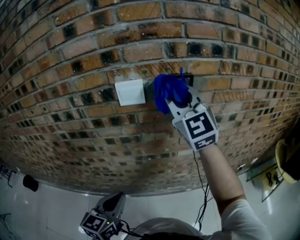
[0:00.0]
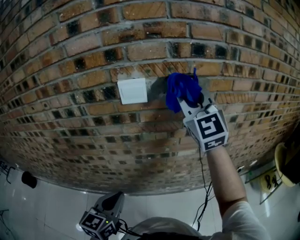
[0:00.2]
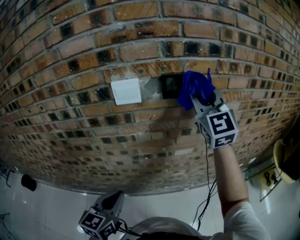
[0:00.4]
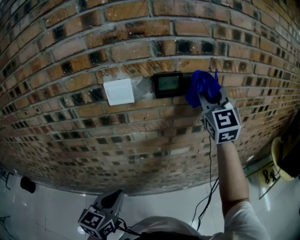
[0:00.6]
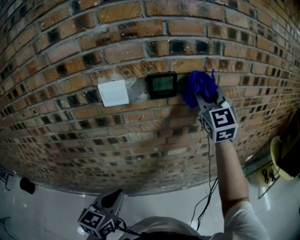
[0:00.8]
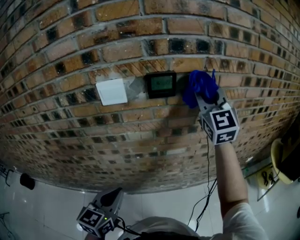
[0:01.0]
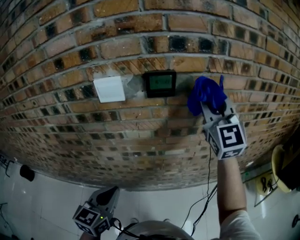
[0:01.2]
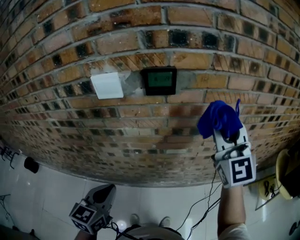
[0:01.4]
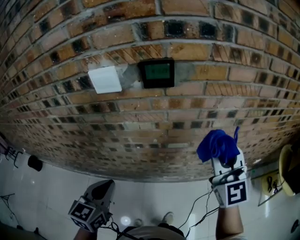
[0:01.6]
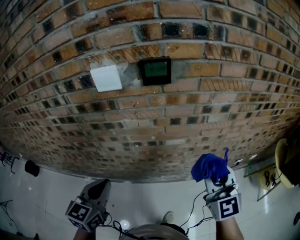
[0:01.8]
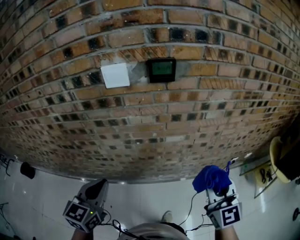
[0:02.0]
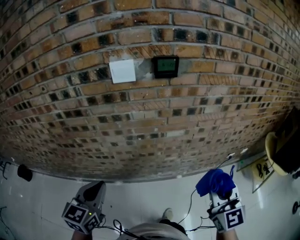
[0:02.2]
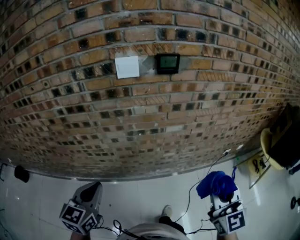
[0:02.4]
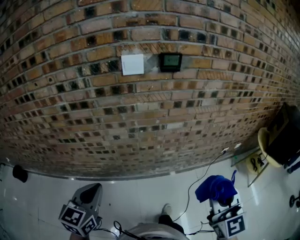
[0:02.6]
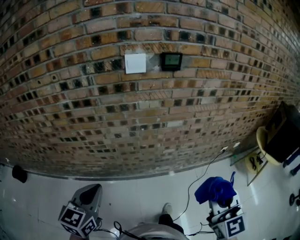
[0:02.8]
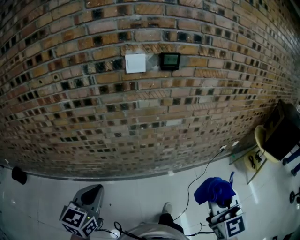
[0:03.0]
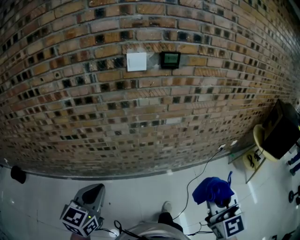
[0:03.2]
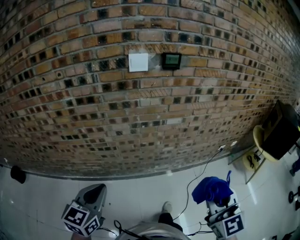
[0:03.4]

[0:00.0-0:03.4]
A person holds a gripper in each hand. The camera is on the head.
0:00.0 to 0:01.6: The left gripper shifts about 5 cm to the right; the right gripper is displaced to the right, downward and backward by about 25 cm.
0:01.6 to 0:03.4: The right gripper heads backward, covering approximately 40 cm. Meanwhile the left gripper moves backward and to the left, some 30 cm.

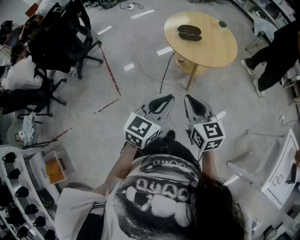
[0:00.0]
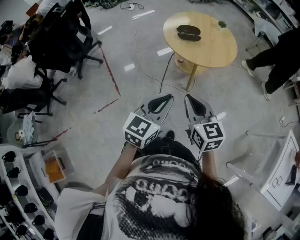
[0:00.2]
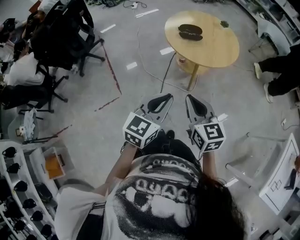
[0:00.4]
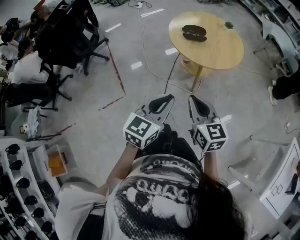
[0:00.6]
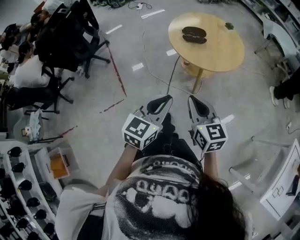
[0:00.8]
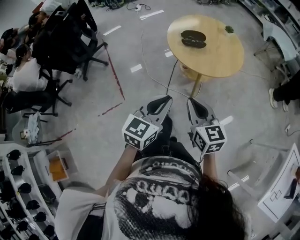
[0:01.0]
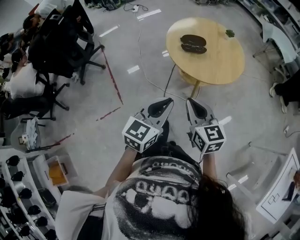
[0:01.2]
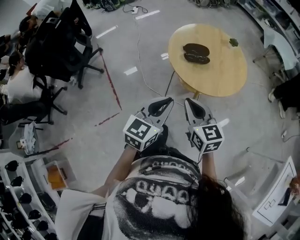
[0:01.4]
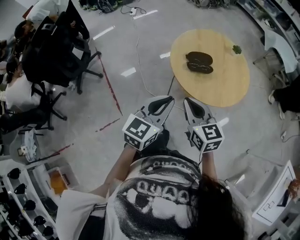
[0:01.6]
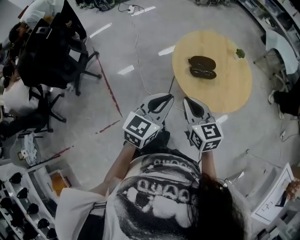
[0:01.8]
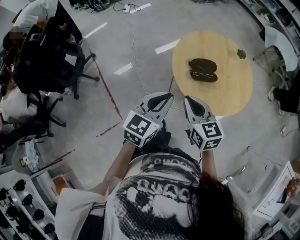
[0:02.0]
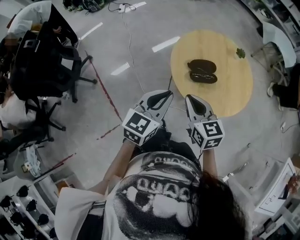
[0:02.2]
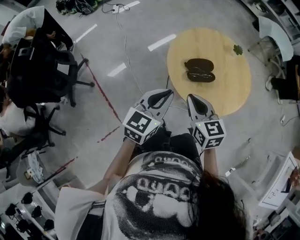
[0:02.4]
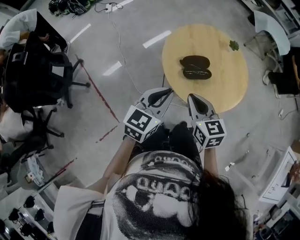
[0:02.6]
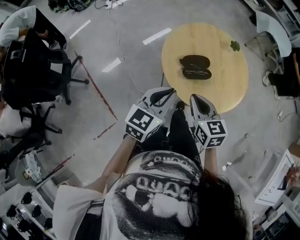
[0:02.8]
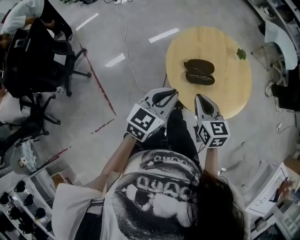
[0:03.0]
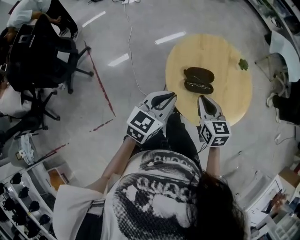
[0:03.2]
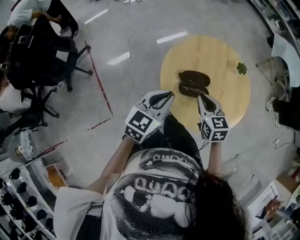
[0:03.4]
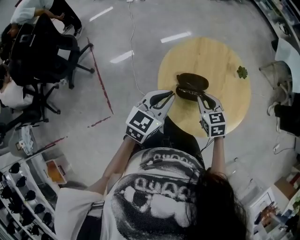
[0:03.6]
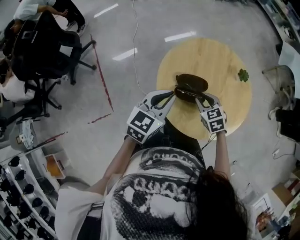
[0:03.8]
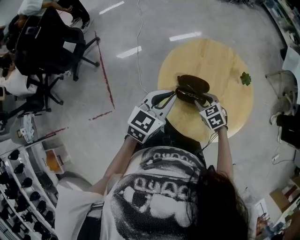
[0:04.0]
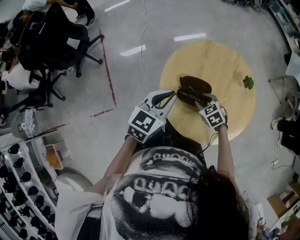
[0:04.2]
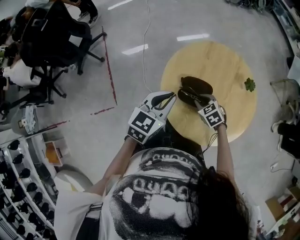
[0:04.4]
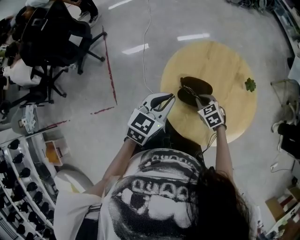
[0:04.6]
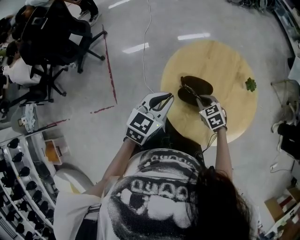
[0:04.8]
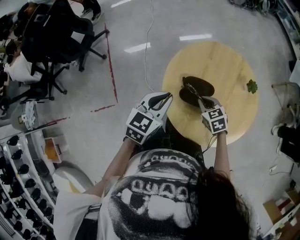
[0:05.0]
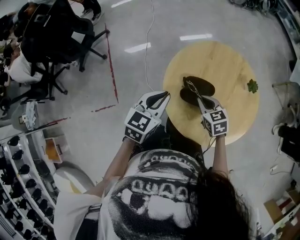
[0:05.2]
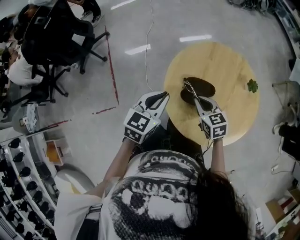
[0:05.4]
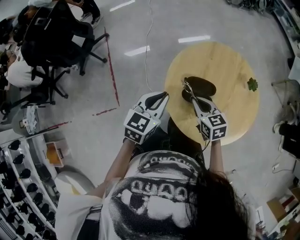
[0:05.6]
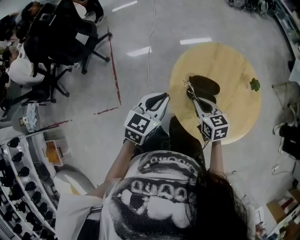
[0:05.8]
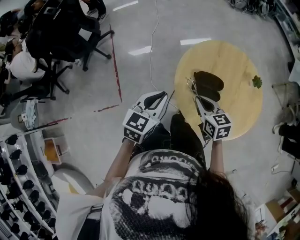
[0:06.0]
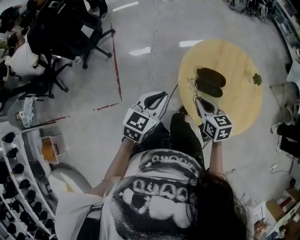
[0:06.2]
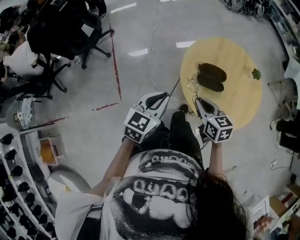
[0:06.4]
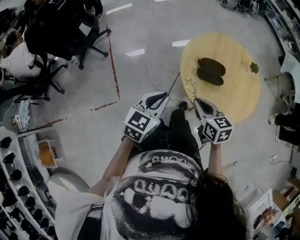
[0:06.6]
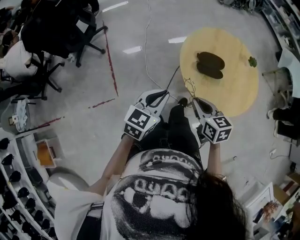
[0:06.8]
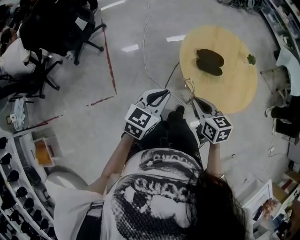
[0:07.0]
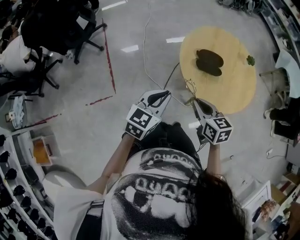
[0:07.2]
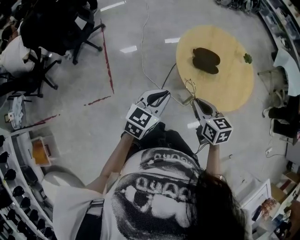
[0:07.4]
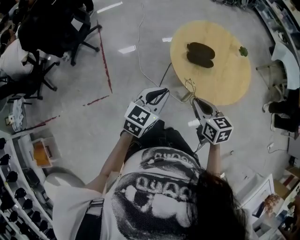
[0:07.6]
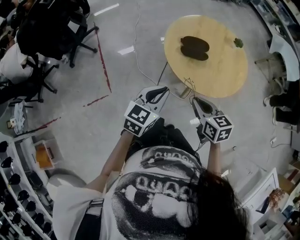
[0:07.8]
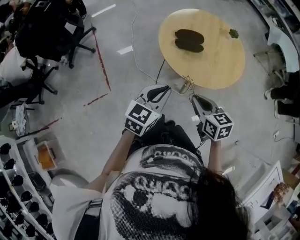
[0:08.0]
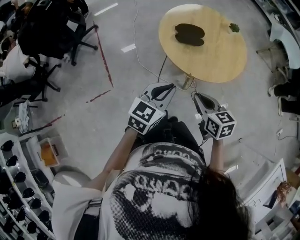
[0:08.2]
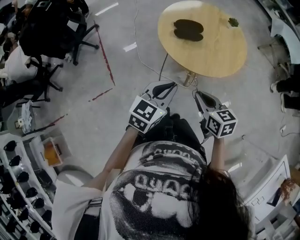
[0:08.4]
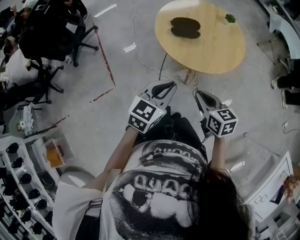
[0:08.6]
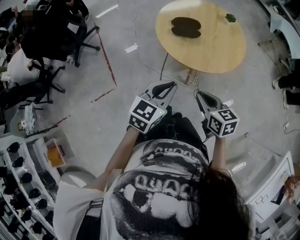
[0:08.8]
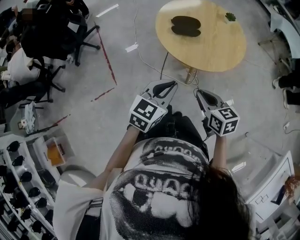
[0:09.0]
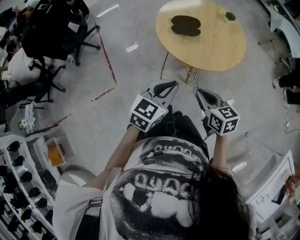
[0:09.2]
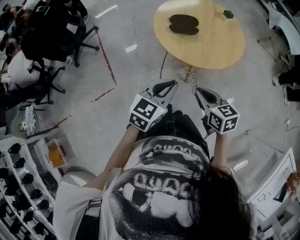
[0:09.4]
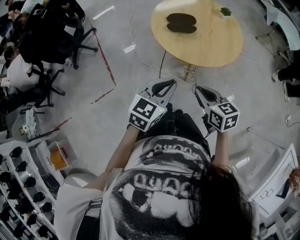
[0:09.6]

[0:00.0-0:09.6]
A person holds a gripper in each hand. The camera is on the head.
0:00.0 to 0:01.6: Both grippers travel together forward, some 25 cm.
0:01.6 to 0:03.2: The two grippers go roughly 20 cm forward.
0:03.2 to 0:04.8: The right gripper goes roughly 15 cm downward, changes its angle by roughly 40 degrees, and opens and closes again. Meanwhile the left gripper ends up some 5 cm from where it was.
0:04.8 to 0:06.4: The left gripper moves to the left and backward, approximately 15 cm. The right gripper goes roughly 20 cm upward, to the left and backward, and swivels some 30 degrees.
0:06.4 to 0:08.0: The right gripper is displaced backward by some 20 cm, while the left gripper heads backward and to the right, covering approximately 15 cm.
0:08.0 to 0:09.6: The right gripper heads backward, covering approximately 5 cm. Meanwhile the left gripper travels backward and to the right by about 10 cm.

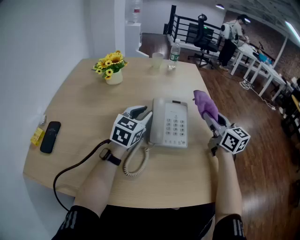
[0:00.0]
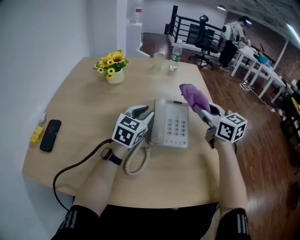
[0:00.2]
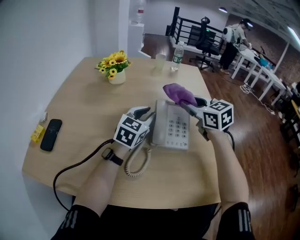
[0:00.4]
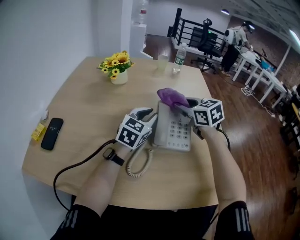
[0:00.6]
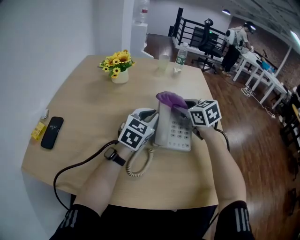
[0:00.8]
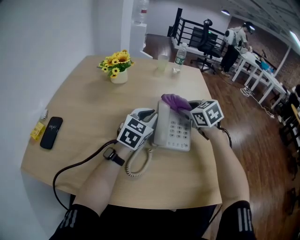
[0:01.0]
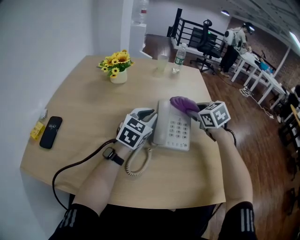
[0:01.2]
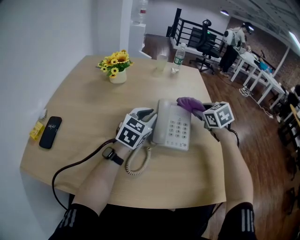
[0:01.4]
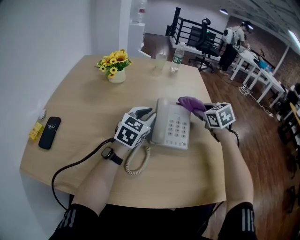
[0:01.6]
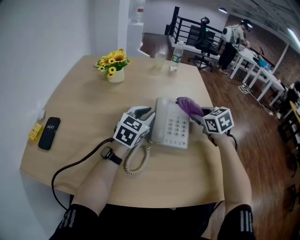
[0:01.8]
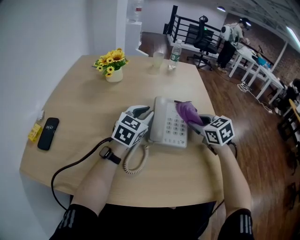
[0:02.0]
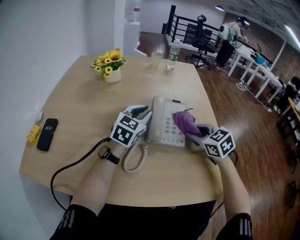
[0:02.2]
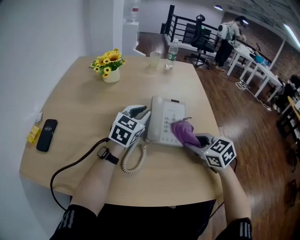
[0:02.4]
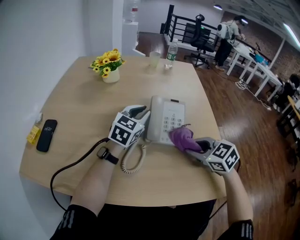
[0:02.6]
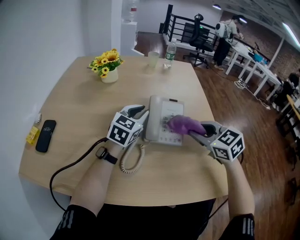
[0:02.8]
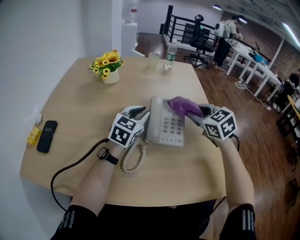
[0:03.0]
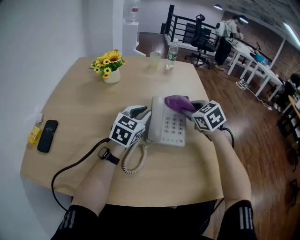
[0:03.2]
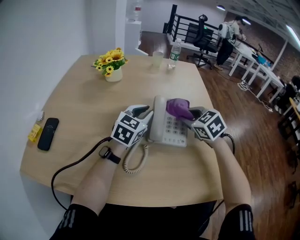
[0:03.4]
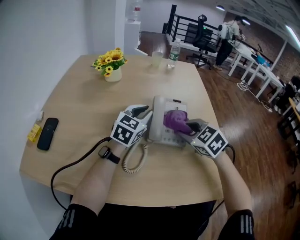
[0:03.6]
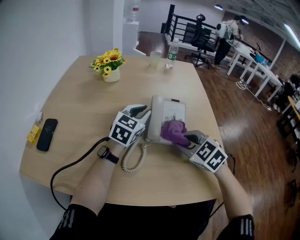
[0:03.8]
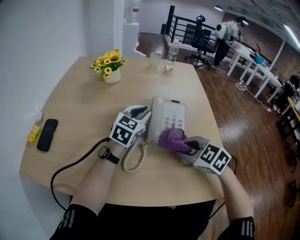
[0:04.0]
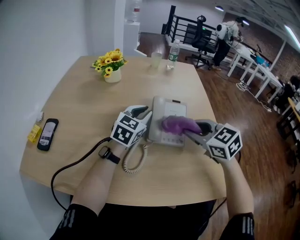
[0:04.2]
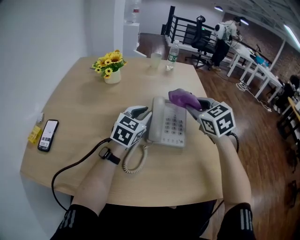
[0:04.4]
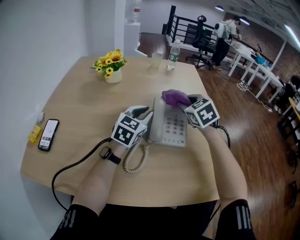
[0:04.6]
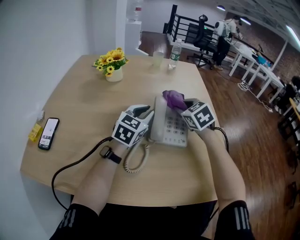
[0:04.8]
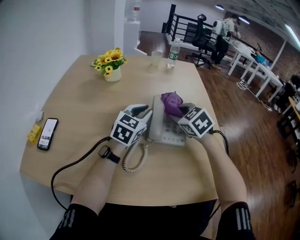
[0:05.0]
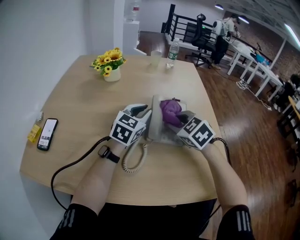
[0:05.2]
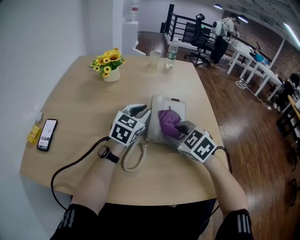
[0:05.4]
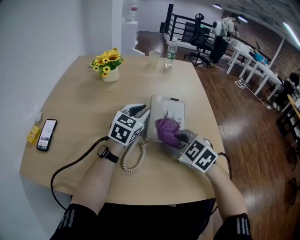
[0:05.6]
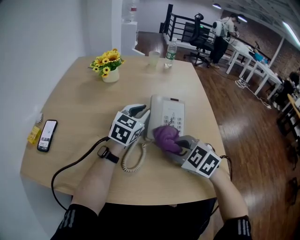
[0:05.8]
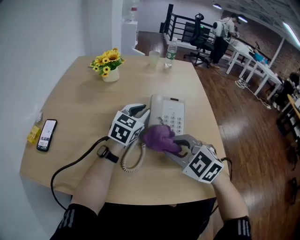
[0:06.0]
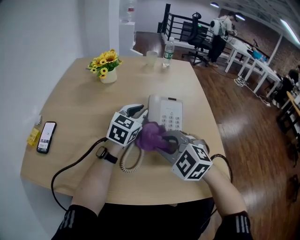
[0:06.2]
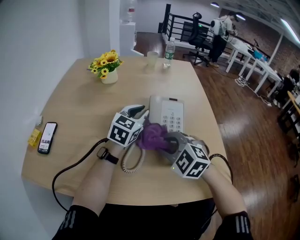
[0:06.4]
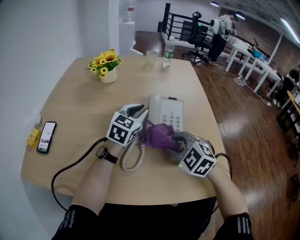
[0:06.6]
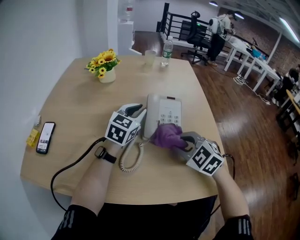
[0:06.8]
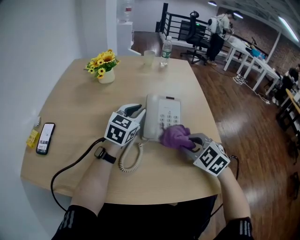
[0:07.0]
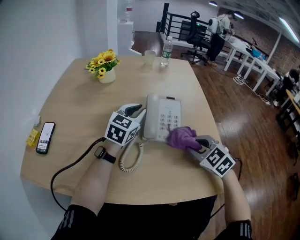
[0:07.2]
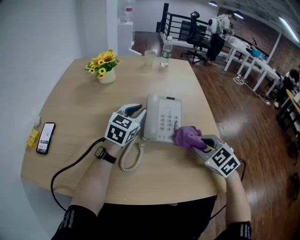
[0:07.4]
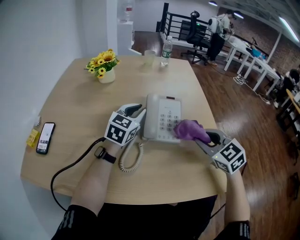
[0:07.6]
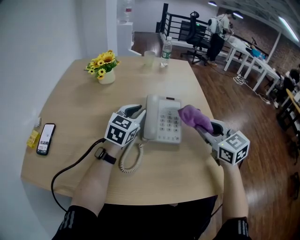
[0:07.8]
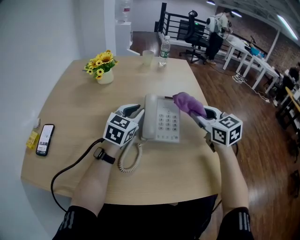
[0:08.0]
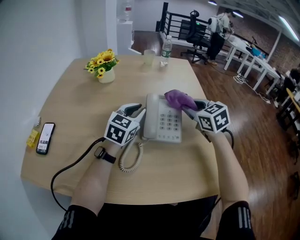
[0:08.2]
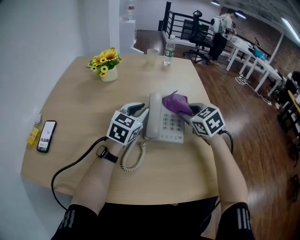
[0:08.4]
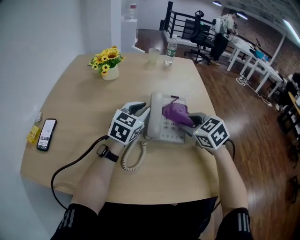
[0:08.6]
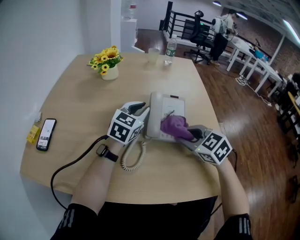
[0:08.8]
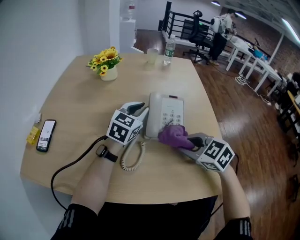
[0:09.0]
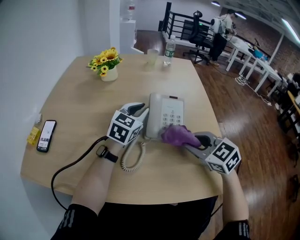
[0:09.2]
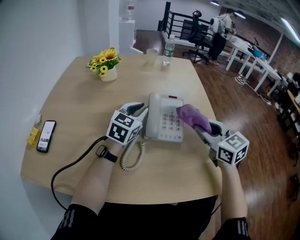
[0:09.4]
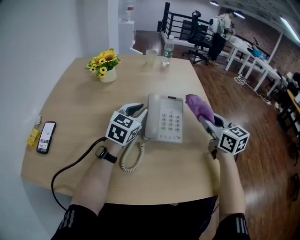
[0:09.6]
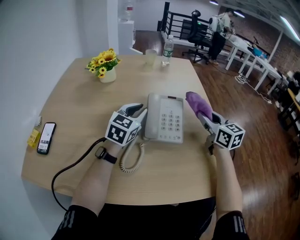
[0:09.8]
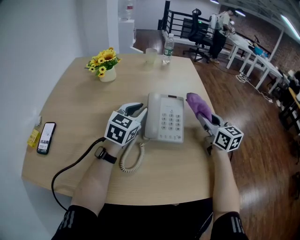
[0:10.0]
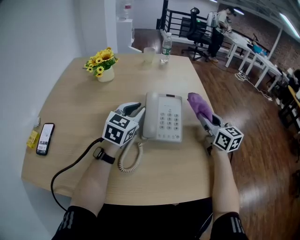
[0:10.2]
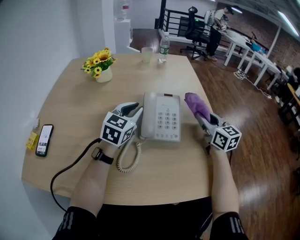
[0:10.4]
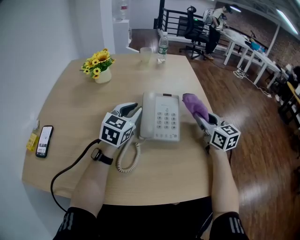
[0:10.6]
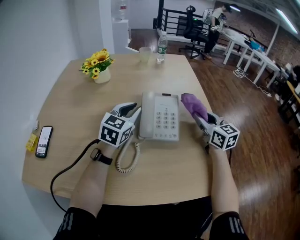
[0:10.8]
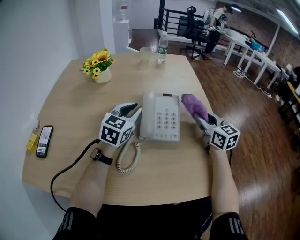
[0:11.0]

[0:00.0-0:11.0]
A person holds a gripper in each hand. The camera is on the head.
0:00.0 to 0:01.6: The right gripper goes some 10 cm forward and downward, goes to the left and returns, some 15 cm each way, and tips its fingers downward by roughly 40 degrees.
0:01.6 to 0:03.2: The right gripper moves approximately 20 cm backward and comes back.
0:03.2 to 0:04.8: The right gripper reaches about 15 cm backward, then returns.
0:04.8 to 0:06.2: The right gripper travels backward and to the left by about 20 cm, and turns by approximately 30 degrees.
0:06.2 to 0:07.8: The right gripper shifts some 15 cm to the right, and changes its angle by some 40 degrees.
0:07.8 to 0:09.4: The right gripper swings forward and backward, some 15 cm each way, with 2 reversals.
0:09.4 to 0:11.0: The right gripper moves forward and to the right, about 10 cm.
